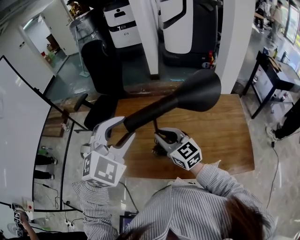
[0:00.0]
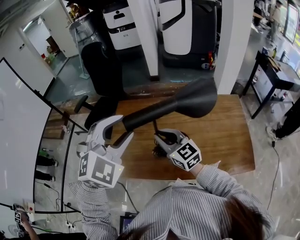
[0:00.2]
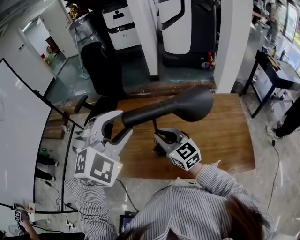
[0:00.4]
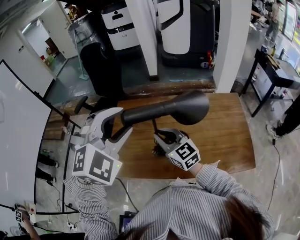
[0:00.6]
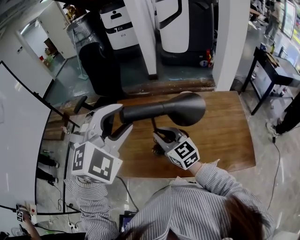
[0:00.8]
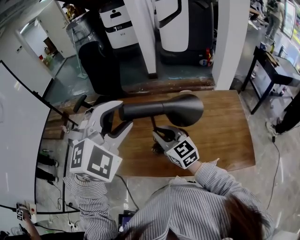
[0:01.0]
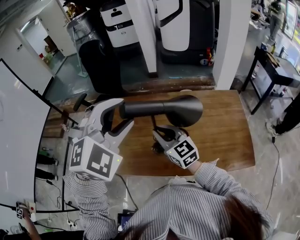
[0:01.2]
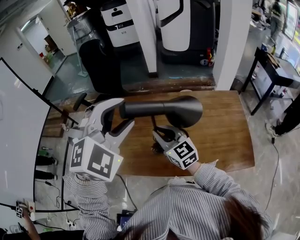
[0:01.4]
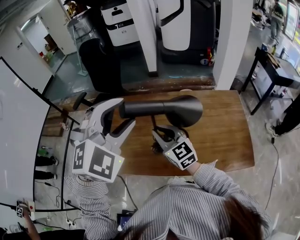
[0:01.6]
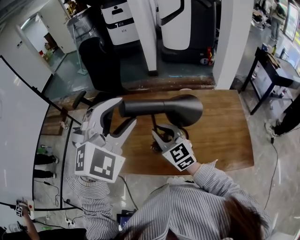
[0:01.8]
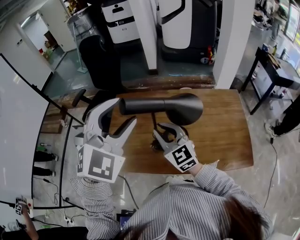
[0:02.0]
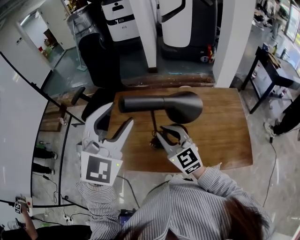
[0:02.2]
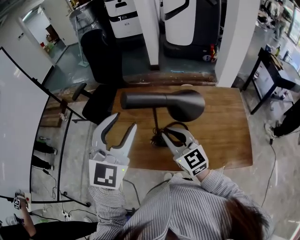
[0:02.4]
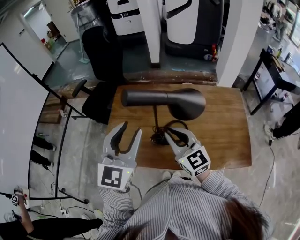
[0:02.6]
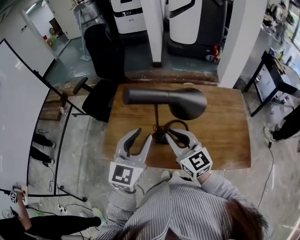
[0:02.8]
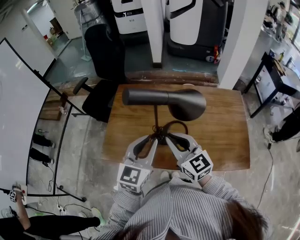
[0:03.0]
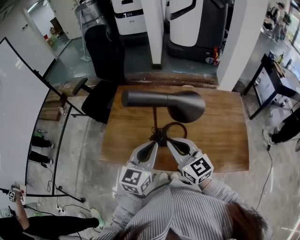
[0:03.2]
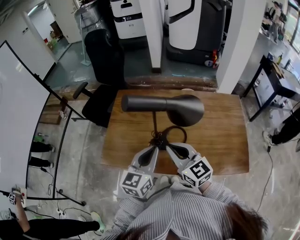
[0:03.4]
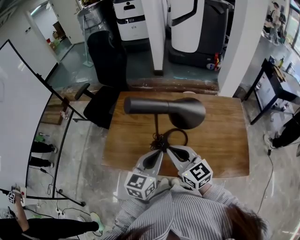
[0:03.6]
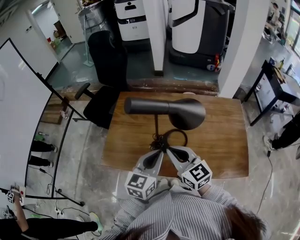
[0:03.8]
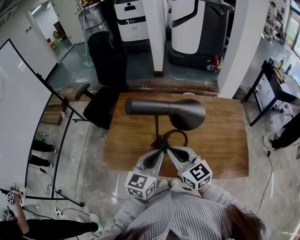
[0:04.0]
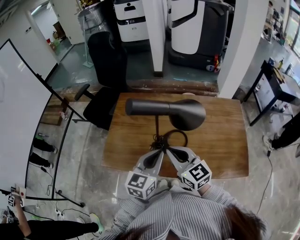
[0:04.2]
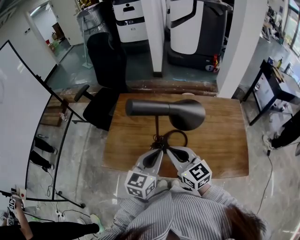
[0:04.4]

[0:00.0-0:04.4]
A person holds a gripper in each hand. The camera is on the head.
0:00.0 to 0:01.4: The left gripper is displaced upward by roughly 5 cm.
0:01.4 to 0:03.0: The left gripper shifts roughly 20 cm downward, rolls counterclockwise, seen from behind, by approximately 60 degrees, and closes. Meanwhile the right gripper shifts some 5 cm backward.
0:03.0 to 0:04.4: The grippers make only small movements.

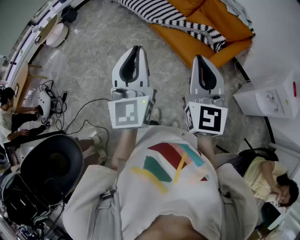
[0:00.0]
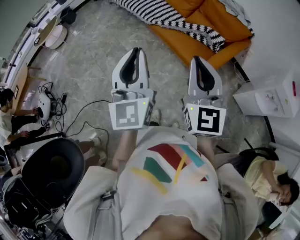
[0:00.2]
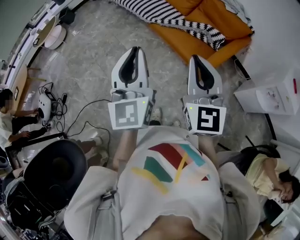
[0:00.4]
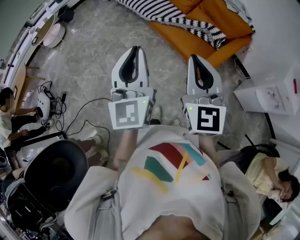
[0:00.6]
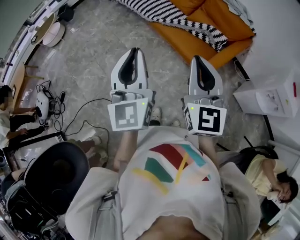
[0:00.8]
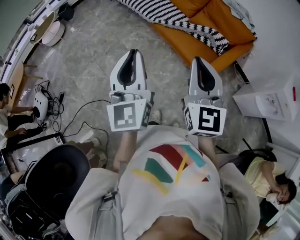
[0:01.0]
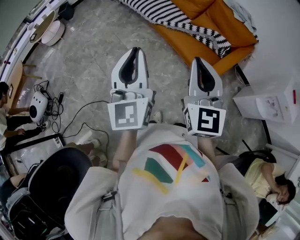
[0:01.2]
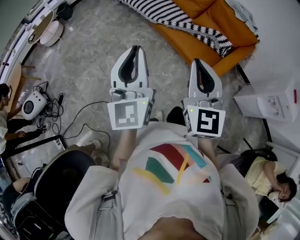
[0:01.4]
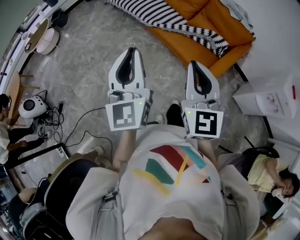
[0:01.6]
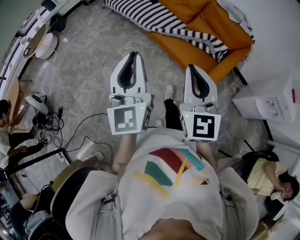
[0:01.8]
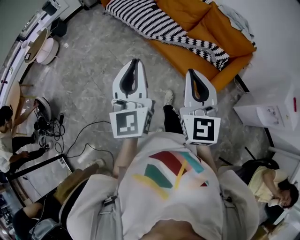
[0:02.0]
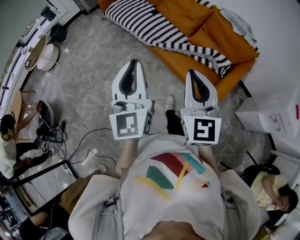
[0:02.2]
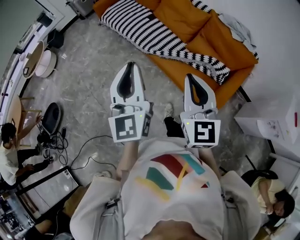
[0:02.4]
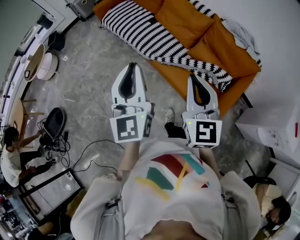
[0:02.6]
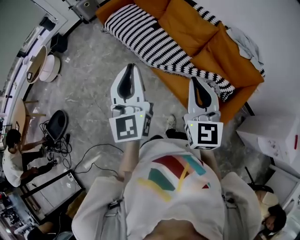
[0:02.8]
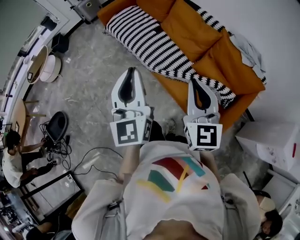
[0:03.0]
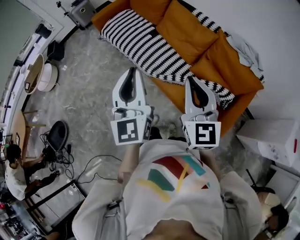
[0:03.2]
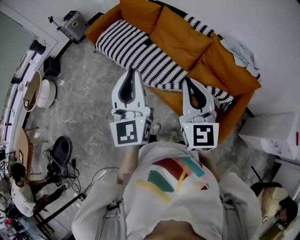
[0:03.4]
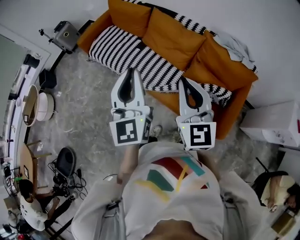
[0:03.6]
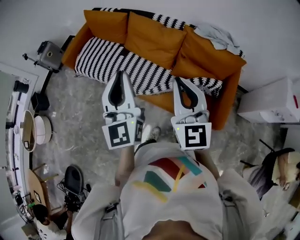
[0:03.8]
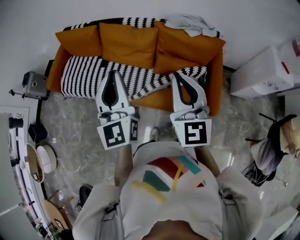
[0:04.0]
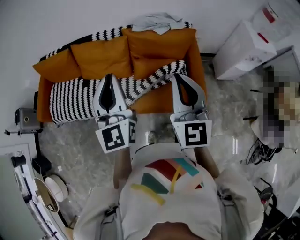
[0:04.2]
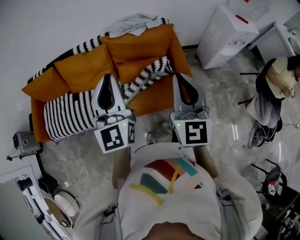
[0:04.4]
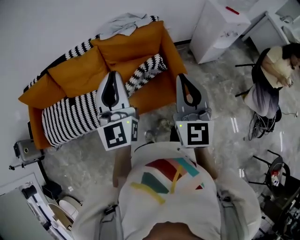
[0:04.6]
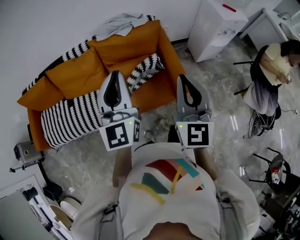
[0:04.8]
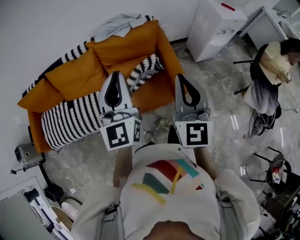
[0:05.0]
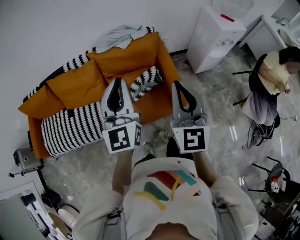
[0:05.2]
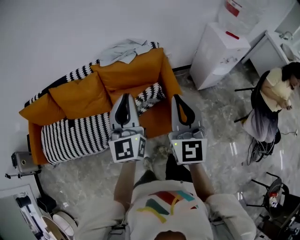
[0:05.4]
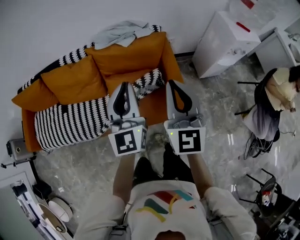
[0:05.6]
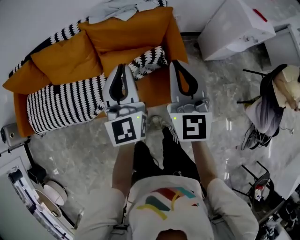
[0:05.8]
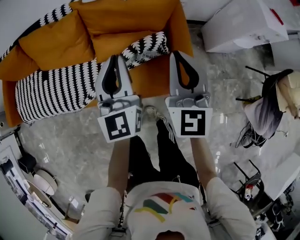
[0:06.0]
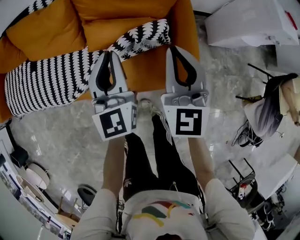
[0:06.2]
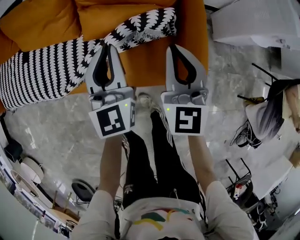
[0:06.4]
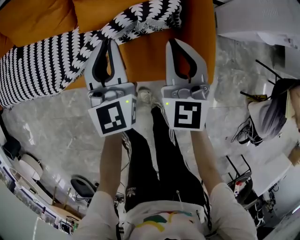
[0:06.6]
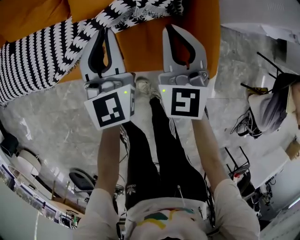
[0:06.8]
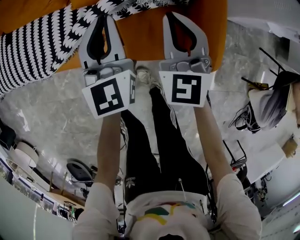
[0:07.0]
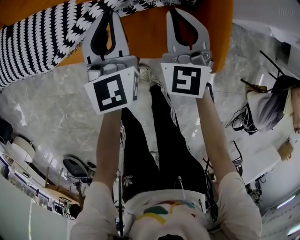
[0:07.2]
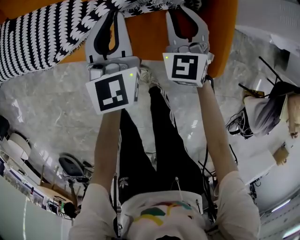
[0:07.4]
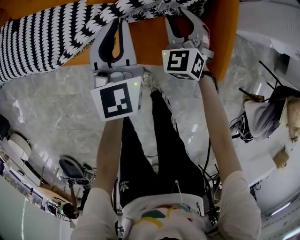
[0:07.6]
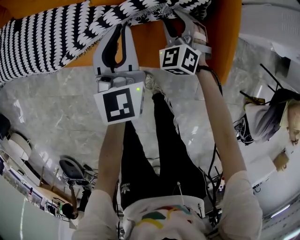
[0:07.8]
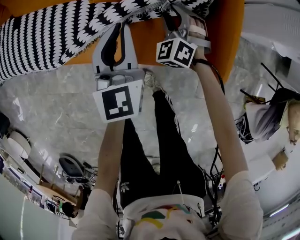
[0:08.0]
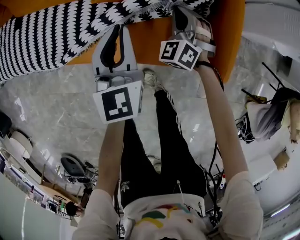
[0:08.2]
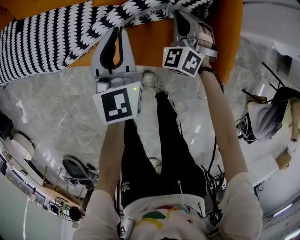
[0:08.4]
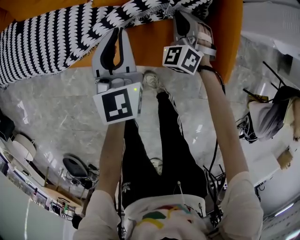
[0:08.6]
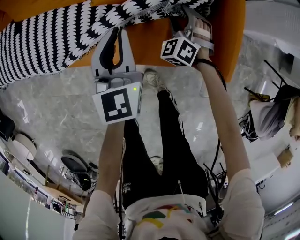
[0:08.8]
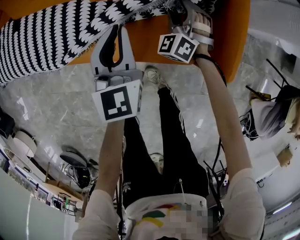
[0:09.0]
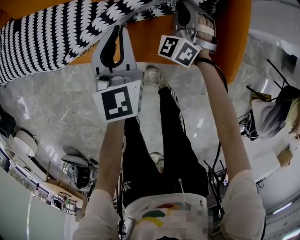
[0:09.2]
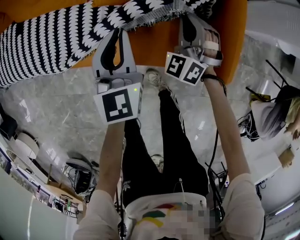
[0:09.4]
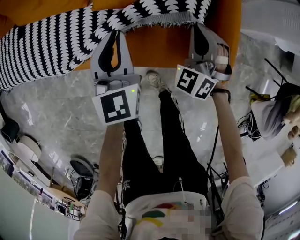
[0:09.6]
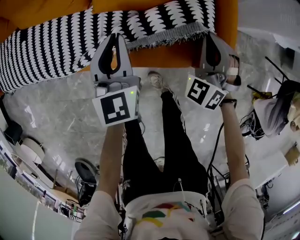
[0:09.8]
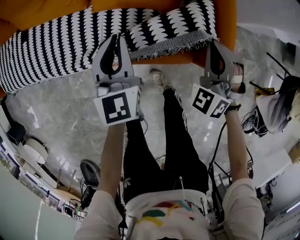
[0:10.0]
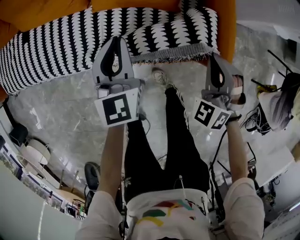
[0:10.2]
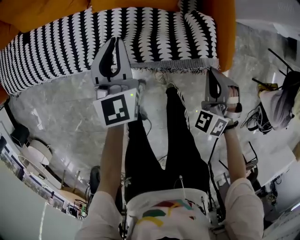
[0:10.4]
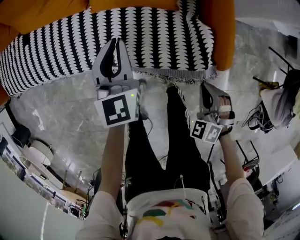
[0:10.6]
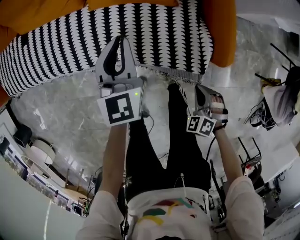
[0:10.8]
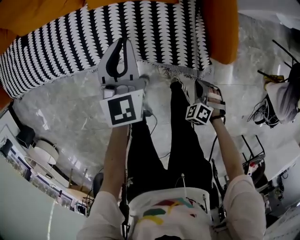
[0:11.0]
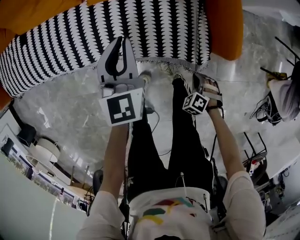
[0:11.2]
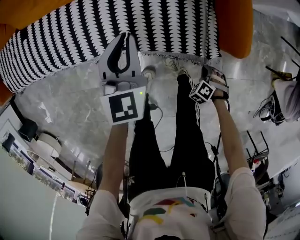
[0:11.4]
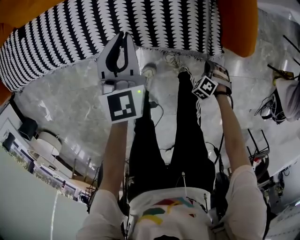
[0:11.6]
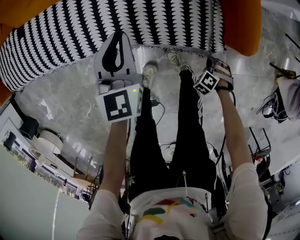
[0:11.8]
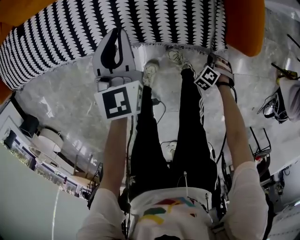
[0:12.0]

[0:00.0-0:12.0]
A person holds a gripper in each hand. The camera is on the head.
0:00.0 to 0:01.6: The two grippers go about 15 cm to the left and forward.
0:01.6 to 0:03.0: The two grippers go some 35 cm forward.
0:03.0 to 0:04.4: The right gripper shifts by about 20 cm, and rotates roughly 60 degrees; the left gripper shifts by roughly 25 cm, and changes its angle by roughly 60 degrees.
0:04.4 to 0:06.0: The right gripper heads downward and forward, covering approximately 20 cm; the left gripper shifts roughly 25 cm downward, forward and to the right.
0:06.0 to 0:07.6: The right gripper heads downward, covering roughly 35 cm, turns by approximately 40 degrees, and opens; the left gripper shifts roughly 20 cm downward.
0:07.6 to 0:09.0: The right gripper moves up and down over approximately 5 cm, changing direction 2 times, changes its angle by some 20 degrees, and closes and opens again.
0:09.0 to 0:10.4: The right gripper shifts roughly 25 cm backward, to the right and upward, and closes its fingers.
0:10.4 to 0:12.0: The right gripper shifts approximately 30 cm downward, and angles its fingers downward, by roughly 30 degrees. The left gripper moves downward, about 10 cm.

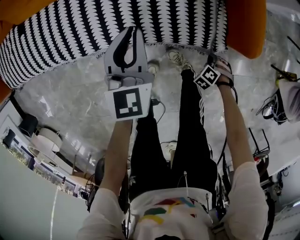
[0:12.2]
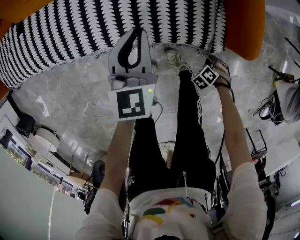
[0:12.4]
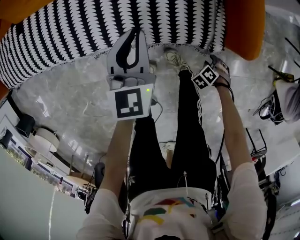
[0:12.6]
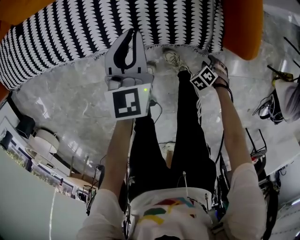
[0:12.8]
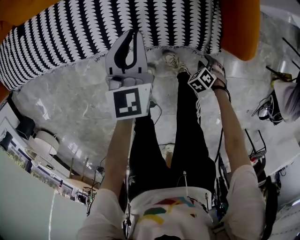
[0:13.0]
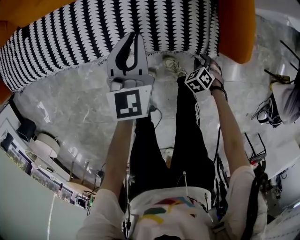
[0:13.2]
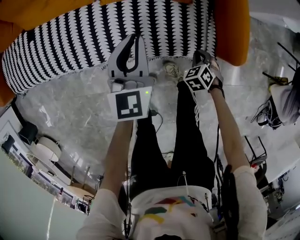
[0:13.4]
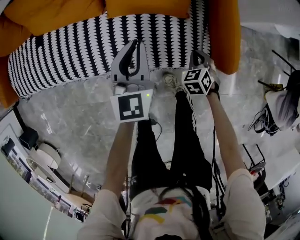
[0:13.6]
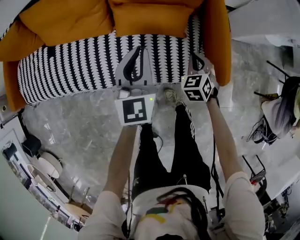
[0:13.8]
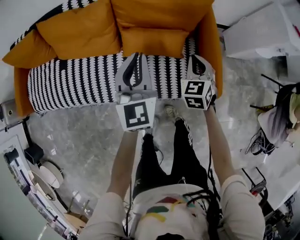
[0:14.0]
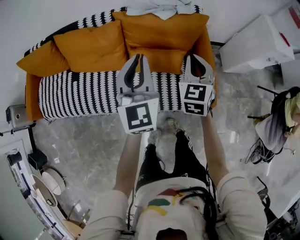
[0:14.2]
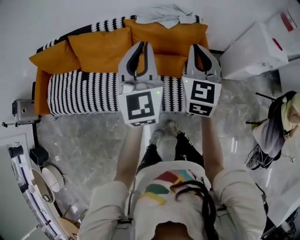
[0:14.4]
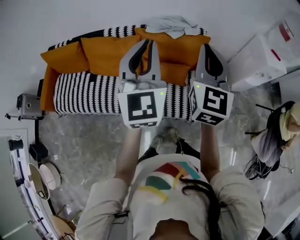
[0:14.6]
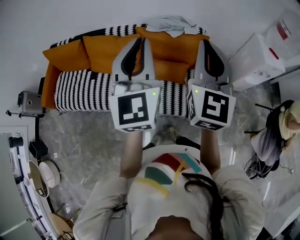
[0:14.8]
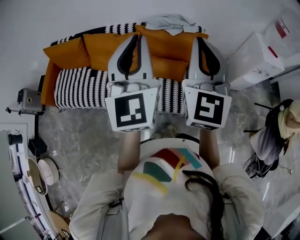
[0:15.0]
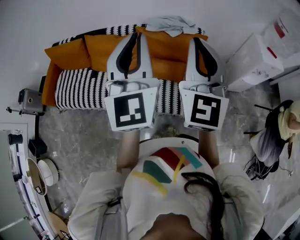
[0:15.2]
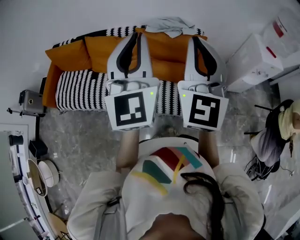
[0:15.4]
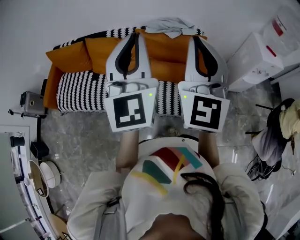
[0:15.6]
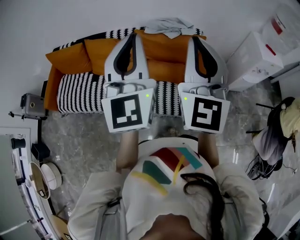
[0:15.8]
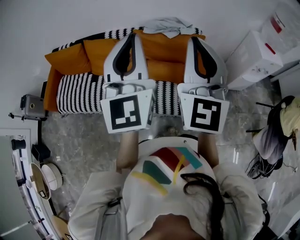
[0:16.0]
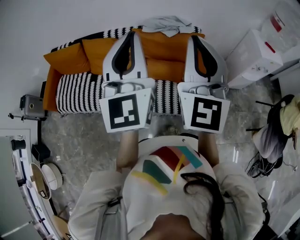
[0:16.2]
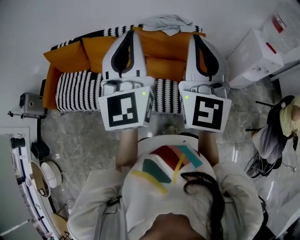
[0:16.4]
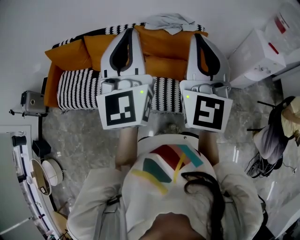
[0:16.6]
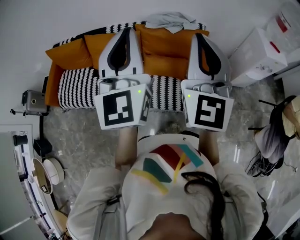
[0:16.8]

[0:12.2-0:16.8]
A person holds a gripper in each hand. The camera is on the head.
0:12.2 to 0:13.8: The left gripper shifts about 20 cm upward, while the right gripper heads upward, covering some 30 cm, points its fingers some 40 degrees further upward, and opens and closes again.
0:13.8 to 0:15.2: Both grippers move upward, about 50 cm. The left gripper swivels about 30 degrees. Meanwhile the right gripper tilts its fingers some 60 degrees upward.
0:15.2 to 0:16.8: The grippers make only small movements.

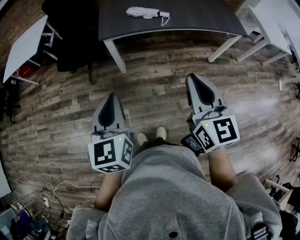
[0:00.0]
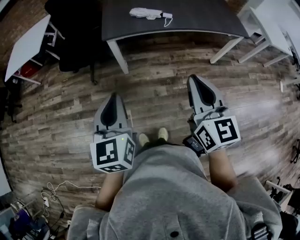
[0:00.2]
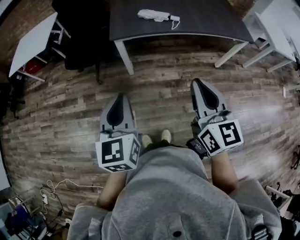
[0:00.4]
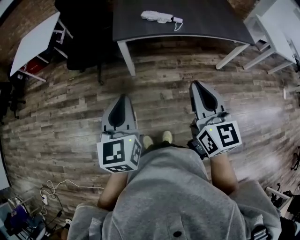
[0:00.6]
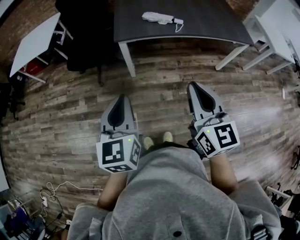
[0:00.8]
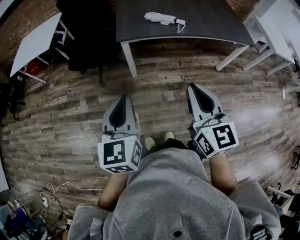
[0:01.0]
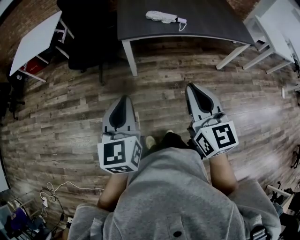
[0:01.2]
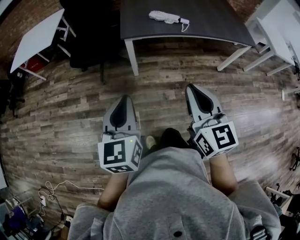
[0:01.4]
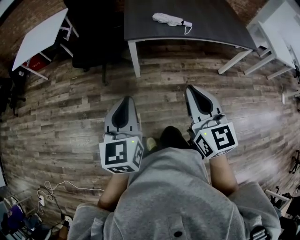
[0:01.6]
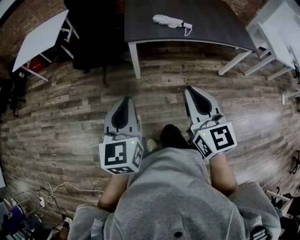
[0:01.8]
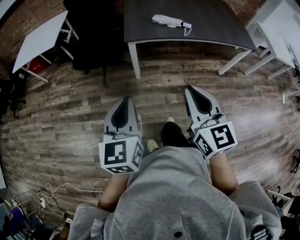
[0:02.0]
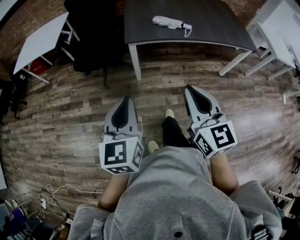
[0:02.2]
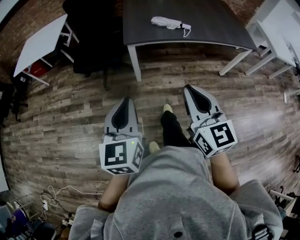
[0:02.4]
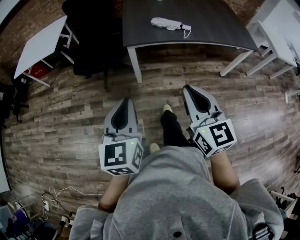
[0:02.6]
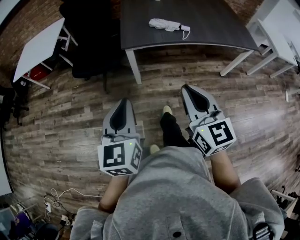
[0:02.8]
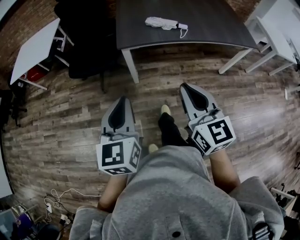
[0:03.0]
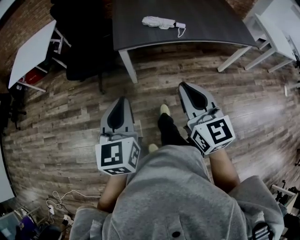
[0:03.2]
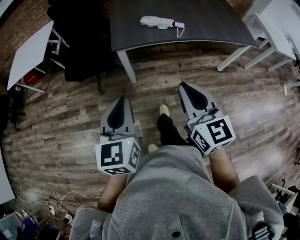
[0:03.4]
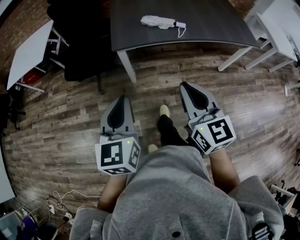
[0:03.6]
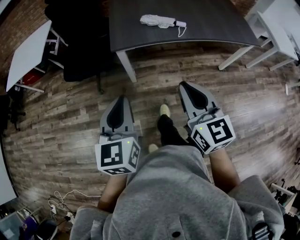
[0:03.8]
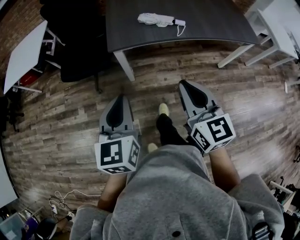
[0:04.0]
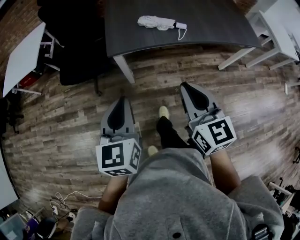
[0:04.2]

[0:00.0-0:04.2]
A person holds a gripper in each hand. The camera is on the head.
0:00.0 to 0:01.4: The two grippers go some 10 cm to the left.
0:01.4 to 0:02.8: The right gripper travels forward by some 5 cm.
0:02.8 to 0:04.2: Both grippers move forward, roughly 15 cm.
